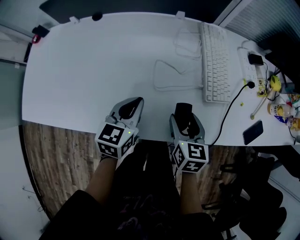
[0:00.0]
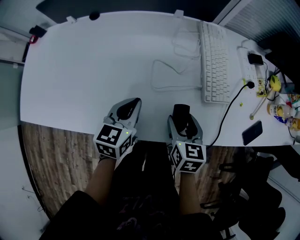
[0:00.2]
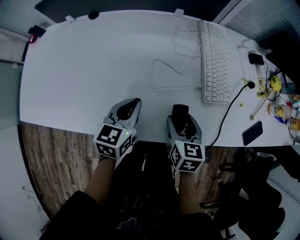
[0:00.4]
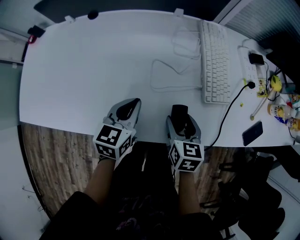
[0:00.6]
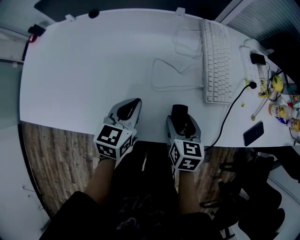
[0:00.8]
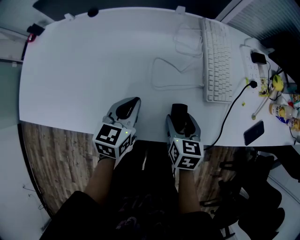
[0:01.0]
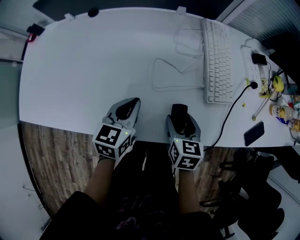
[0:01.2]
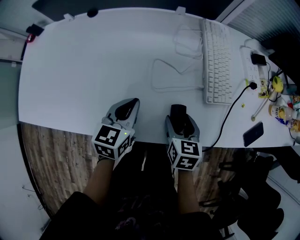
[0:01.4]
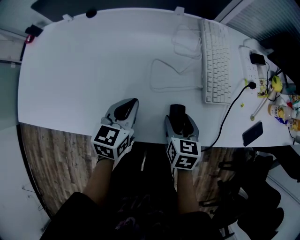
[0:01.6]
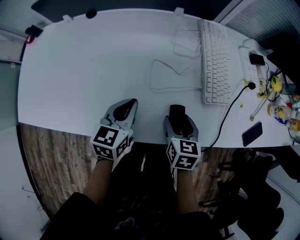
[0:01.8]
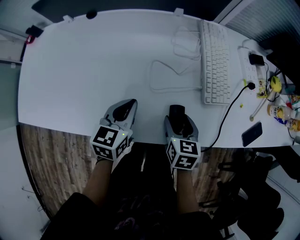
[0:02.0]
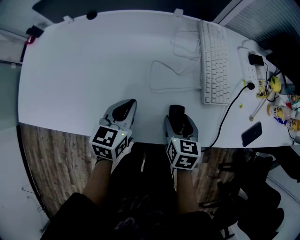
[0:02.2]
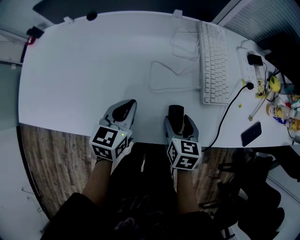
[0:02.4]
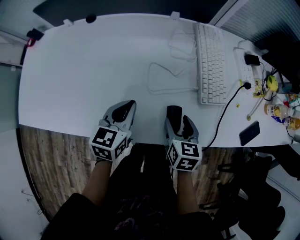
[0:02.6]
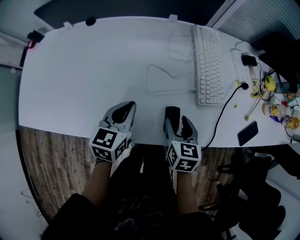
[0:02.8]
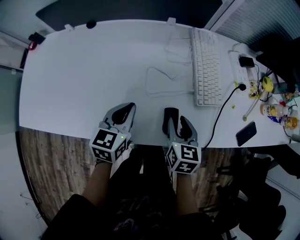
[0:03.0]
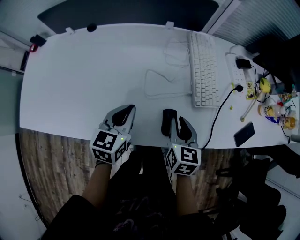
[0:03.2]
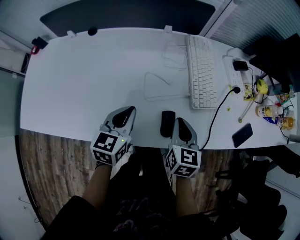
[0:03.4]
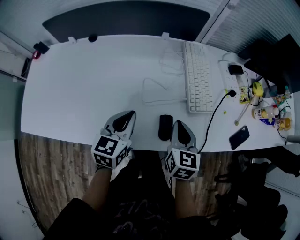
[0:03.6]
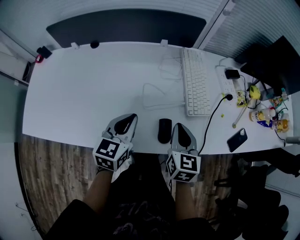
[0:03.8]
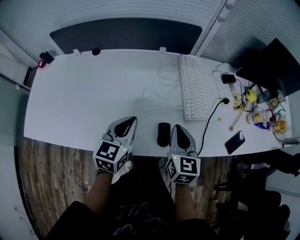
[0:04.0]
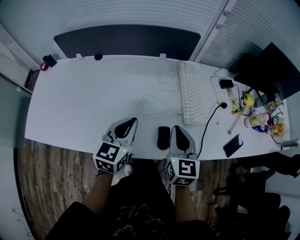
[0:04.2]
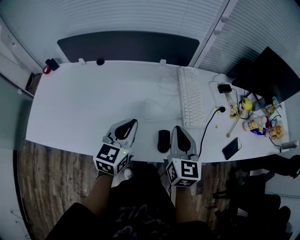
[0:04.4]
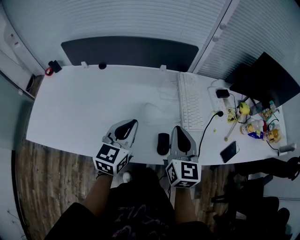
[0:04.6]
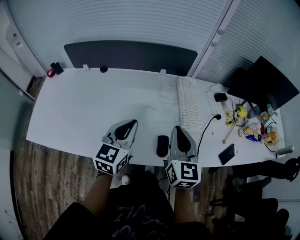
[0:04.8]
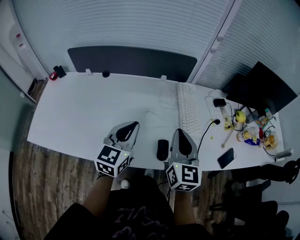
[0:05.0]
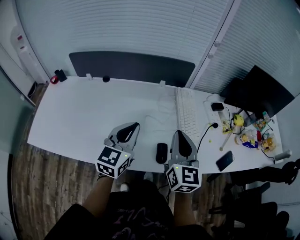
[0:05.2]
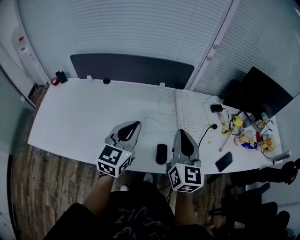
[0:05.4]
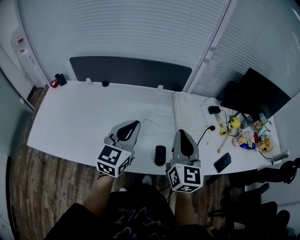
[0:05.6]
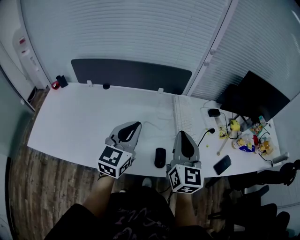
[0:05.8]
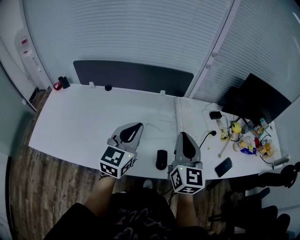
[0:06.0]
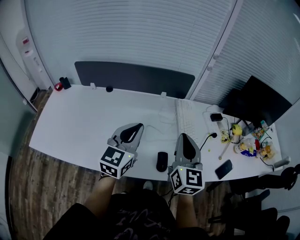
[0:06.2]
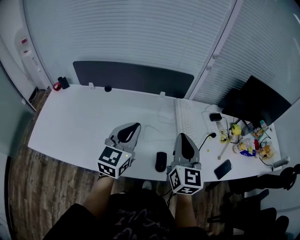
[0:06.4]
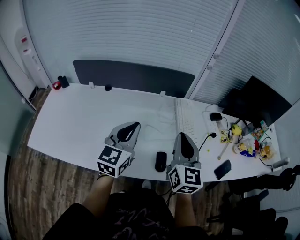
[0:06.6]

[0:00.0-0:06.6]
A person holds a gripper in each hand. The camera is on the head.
0:00.0 to 0:01.6: The grippers make only small movements.
0:01.6 to 0:03.2: The right gripper goes some 5 cm upward, and closes its fingers.
0:03.2 to 0:05.0: The two grippers go approximately 20 cm upward. The right gripper changes its angle by about 30 degrees. The left gripper rotates some 20 degrees.
0:05.0 to 0:06.6: The left gripper goes approximately 5 cm upward.

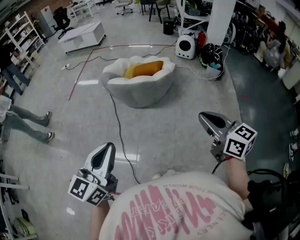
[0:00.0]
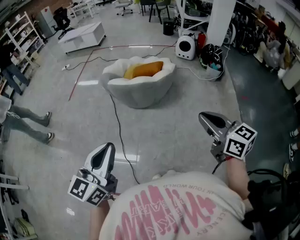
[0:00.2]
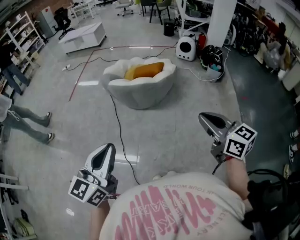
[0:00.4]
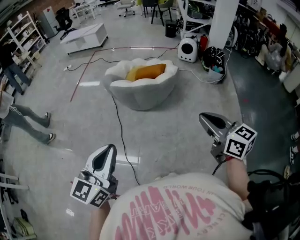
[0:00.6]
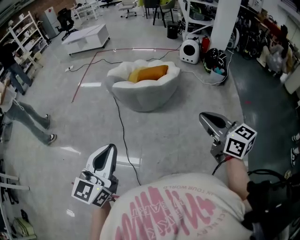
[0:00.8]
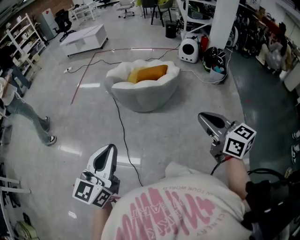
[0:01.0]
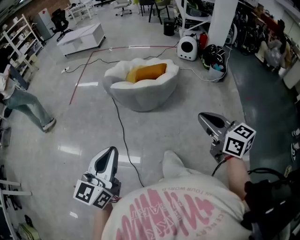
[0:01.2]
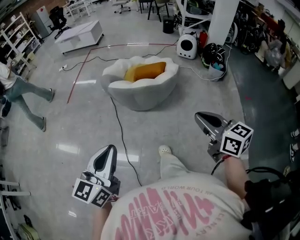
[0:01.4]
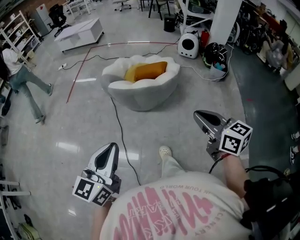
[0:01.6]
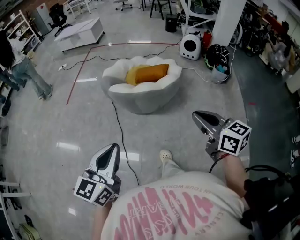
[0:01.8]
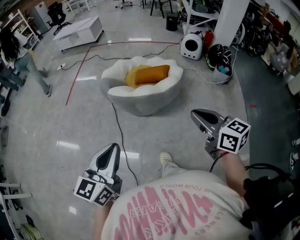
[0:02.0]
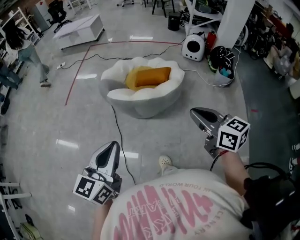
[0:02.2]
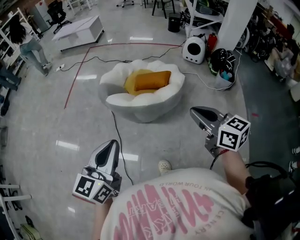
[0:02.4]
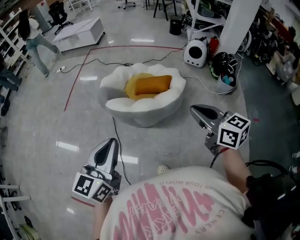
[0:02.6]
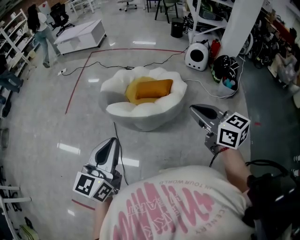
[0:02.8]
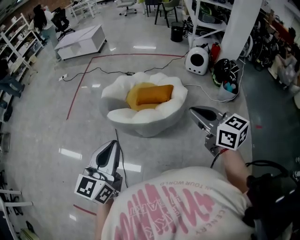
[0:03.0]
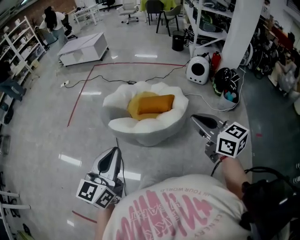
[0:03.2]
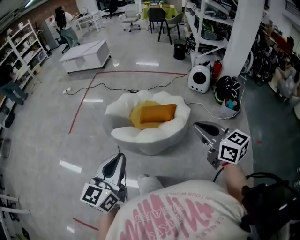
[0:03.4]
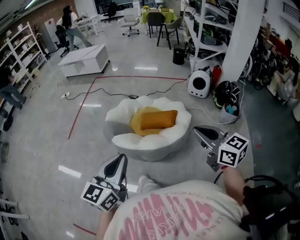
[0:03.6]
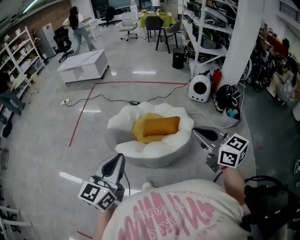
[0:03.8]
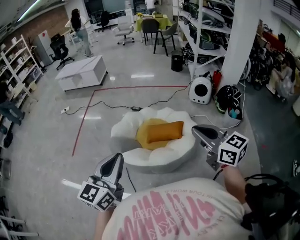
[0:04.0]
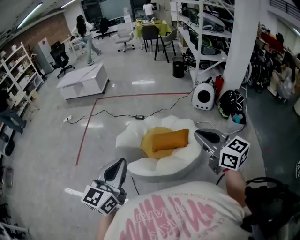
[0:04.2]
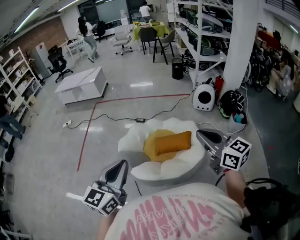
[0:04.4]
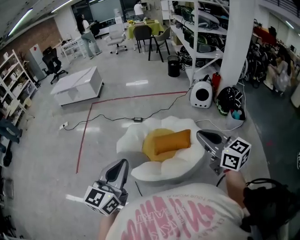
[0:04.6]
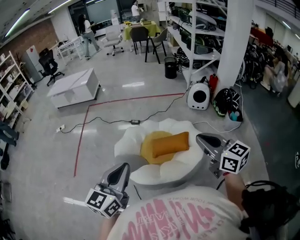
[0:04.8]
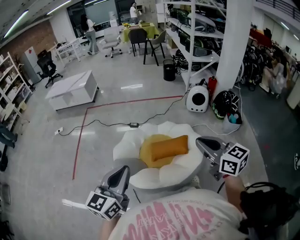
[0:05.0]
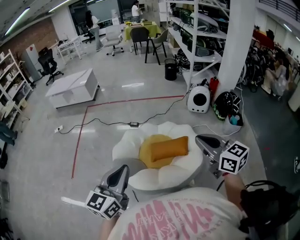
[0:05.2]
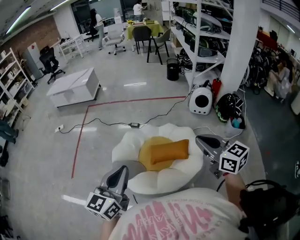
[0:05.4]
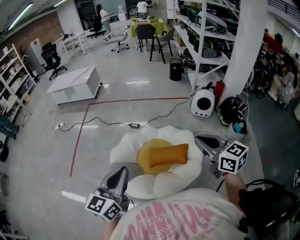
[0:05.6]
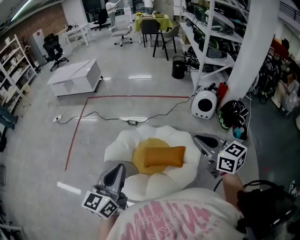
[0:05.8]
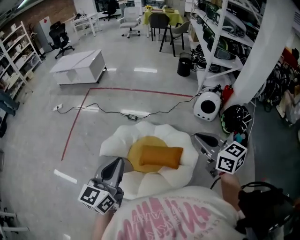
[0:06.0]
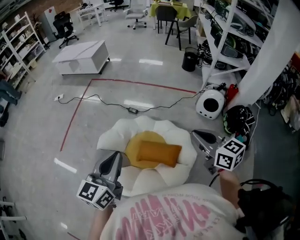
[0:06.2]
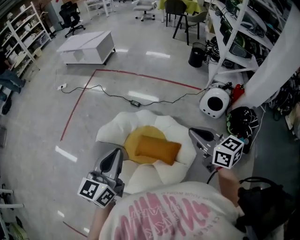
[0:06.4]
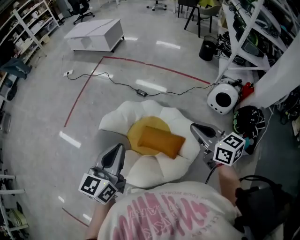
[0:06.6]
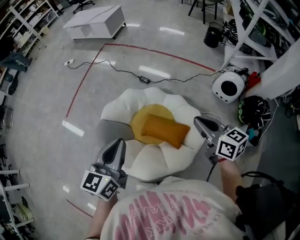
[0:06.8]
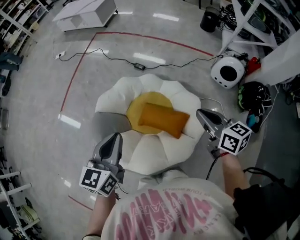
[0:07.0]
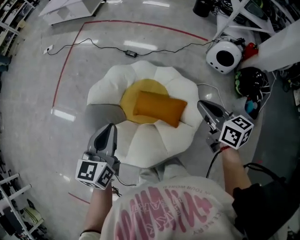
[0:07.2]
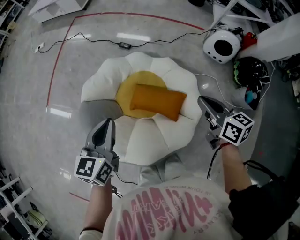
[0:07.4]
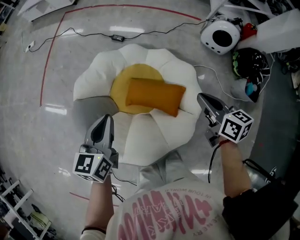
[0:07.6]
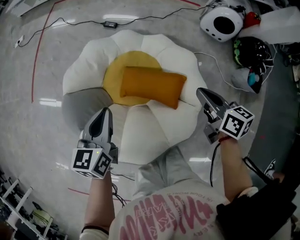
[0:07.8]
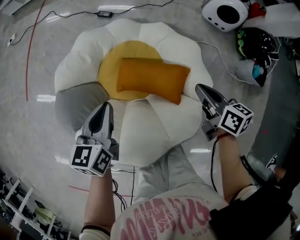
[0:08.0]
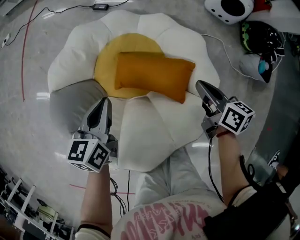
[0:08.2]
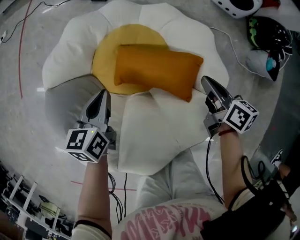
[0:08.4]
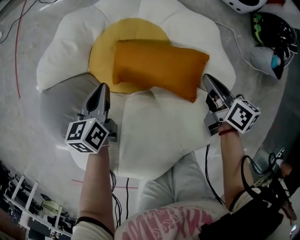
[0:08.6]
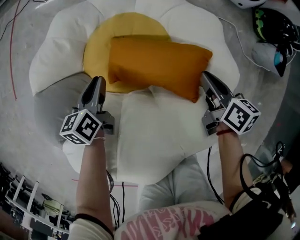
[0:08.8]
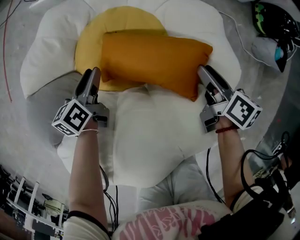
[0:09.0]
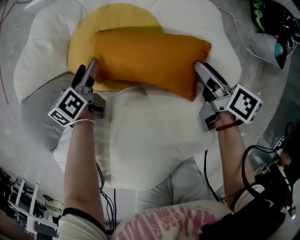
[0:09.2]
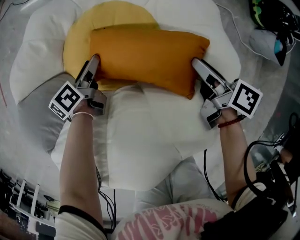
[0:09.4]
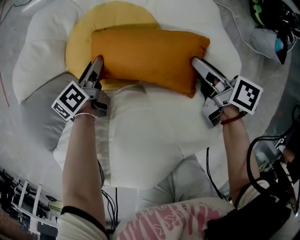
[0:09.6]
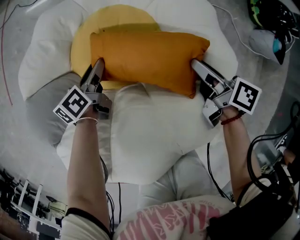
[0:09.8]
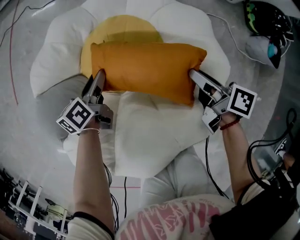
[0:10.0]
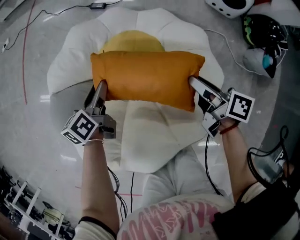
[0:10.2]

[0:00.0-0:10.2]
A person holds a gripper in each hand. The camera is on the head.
0:00.0 to 0:01.4: Both grippers travel together forward, roughly 10 cm.
0:01.4 to 0:03.0: Both grippers move forward, approximately 30 cm.
0:03.0 to 0:04.4: Both grippers travel together forward and to the left, about 25 cm.
0:04.4 to 0:05.8: The grippers both shift forward by approximately 20 cm.
0:05.8 to 0:07.2: The two grippers go some 20 cm downward, forward and to the right. The left gripper turns by roughly 20 degrees. Meanwhile the right gripper turns by roughly 20 degrees.
0:07.2 to 0:08.8: Both grippers travel together downward, some 40 cm. The right gripper rotates approximately 30 degrees. Meanwhile the left gripper rotates about 30 degrees.
0:08.8 to 0:10.2: Both grippers move upward, approximately 10 cm. The right gripper swivels approximately 20 degrees, and opens. Meanwhile the left gripper opens its fingers.

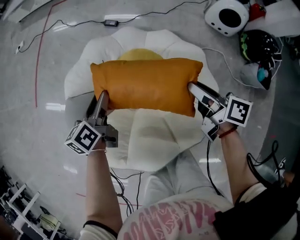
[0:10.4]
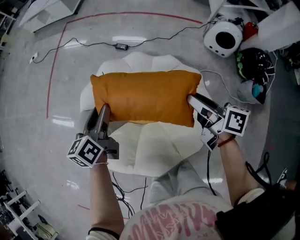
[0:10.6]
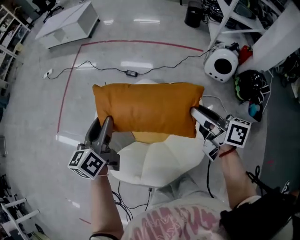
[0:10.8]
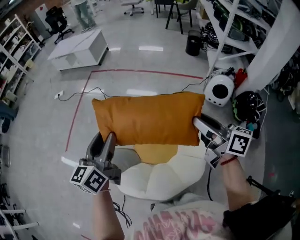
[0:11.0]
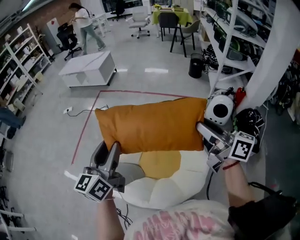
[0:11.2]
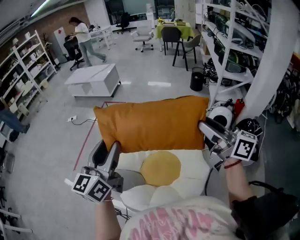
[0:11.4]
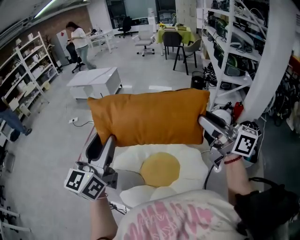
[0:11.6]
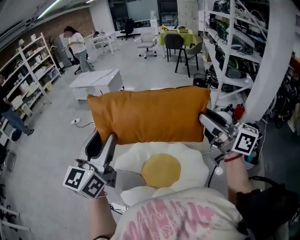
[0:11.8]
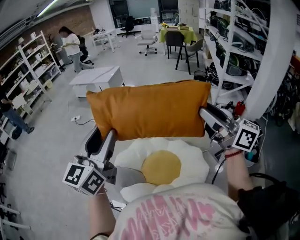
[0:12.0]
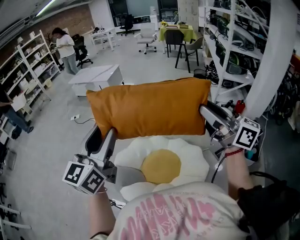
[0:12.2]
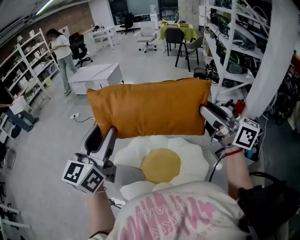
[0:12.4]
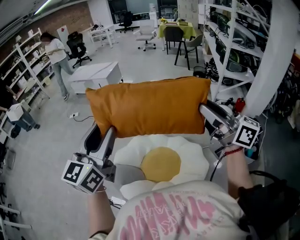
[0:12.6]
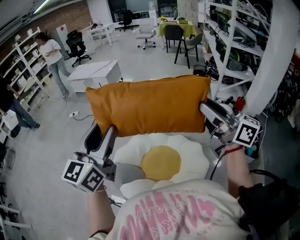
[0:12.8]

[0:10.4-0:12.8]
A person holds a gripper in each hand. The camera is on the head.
0:10.4 to 0:11.6: Both grippers travel together upward, some 50 cm. The right gripper tilts its fingers about 30 degrees upward. Meanwhile the left gripper angles its fingers upward, by some 40 degrees.
0:11.6 to 0:12.8: There are only small adjustments of the grippers.

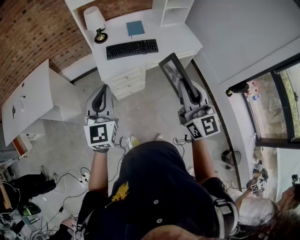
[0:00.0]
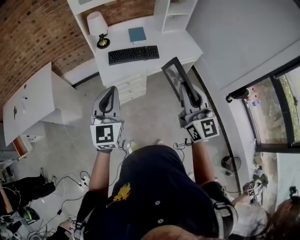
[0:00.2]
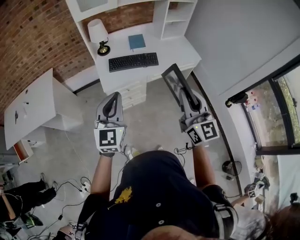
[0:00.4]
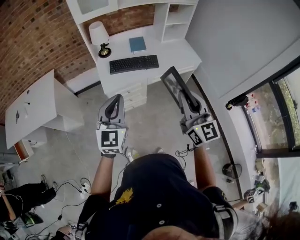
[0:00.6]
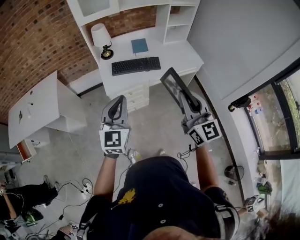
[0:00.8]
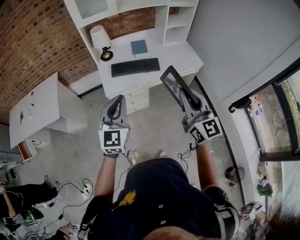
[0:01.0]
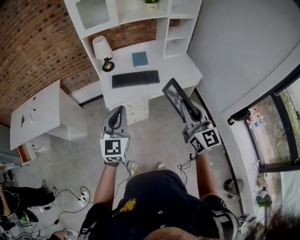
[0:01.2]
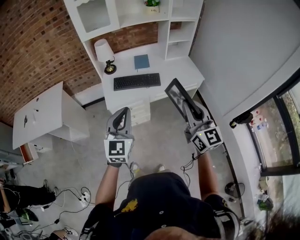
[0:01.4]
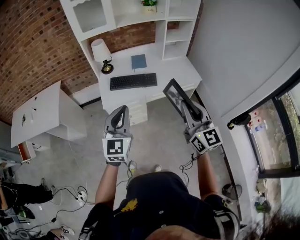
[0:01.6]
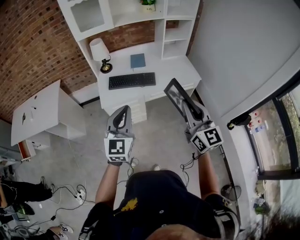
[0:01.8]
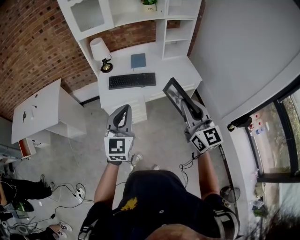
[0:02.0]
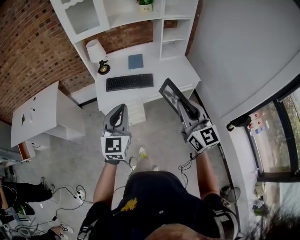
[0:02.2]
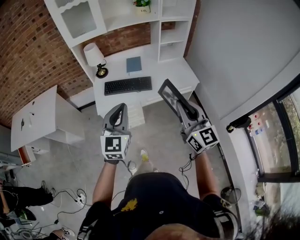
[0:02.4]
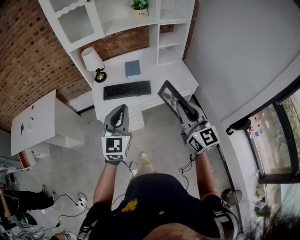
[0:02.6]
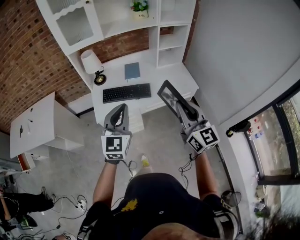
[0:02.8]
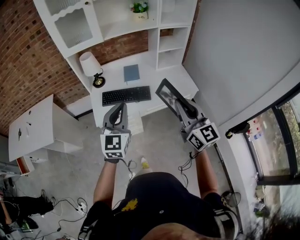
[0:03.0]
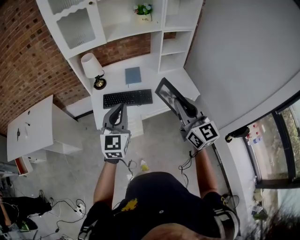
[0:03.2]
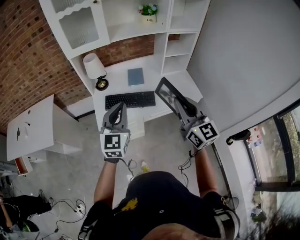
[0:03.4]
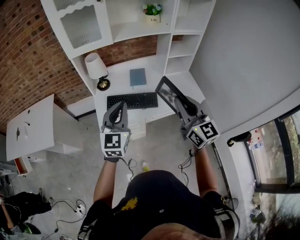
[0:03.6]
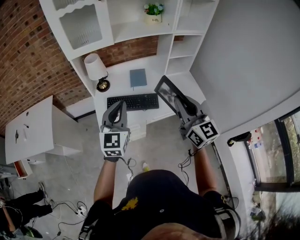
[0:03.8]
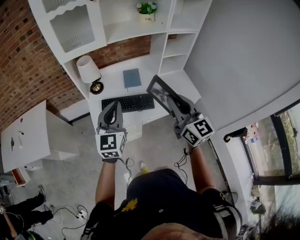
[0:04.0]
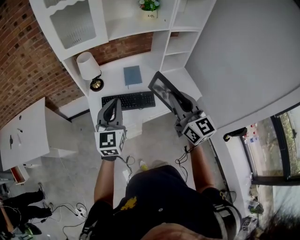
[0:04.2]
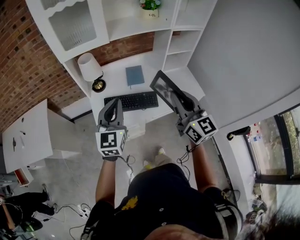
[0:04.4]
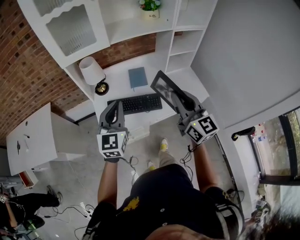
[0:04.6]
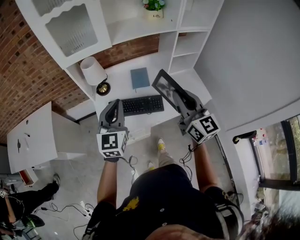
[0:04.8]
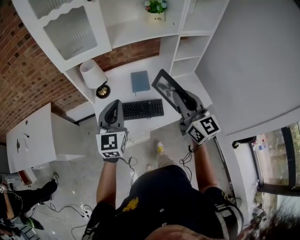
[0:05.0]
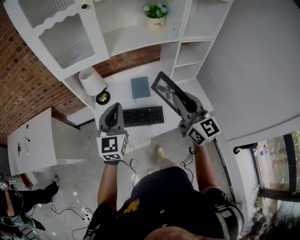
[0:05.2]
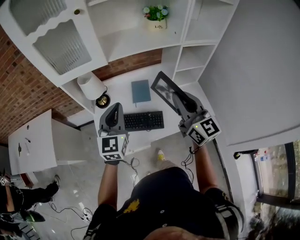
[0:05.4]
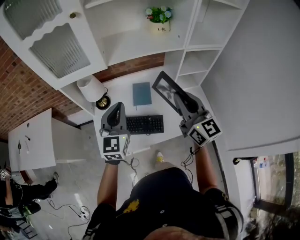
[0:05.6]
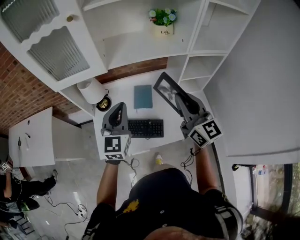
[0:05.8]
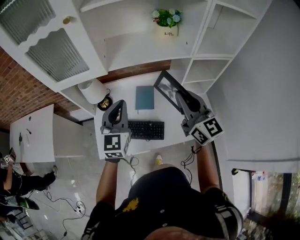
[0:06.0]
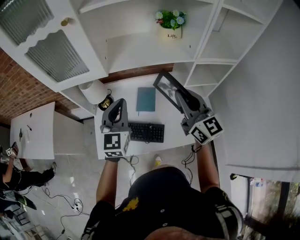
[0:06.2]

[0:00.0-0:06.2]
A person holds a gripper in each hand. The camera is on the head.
0:00.0 to 0:01.6: The grippers both shift to the right by approximately 15 cm.
0:01.6 to 0:03.2: The grippers both shift forward by approximately 20 cm.
0:03.2 to 0:04.6: The two grippers go approximately 20 cm forward and to the left.
0:04.6 to 0:06.2: The left gripper shifts roughly 25 cm forward and to the right; the right gripper moves forward, roughly 30 cm.
